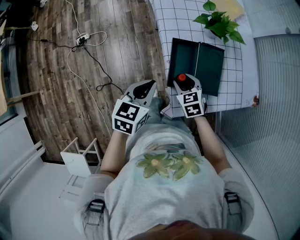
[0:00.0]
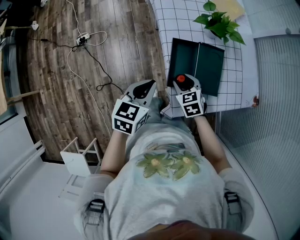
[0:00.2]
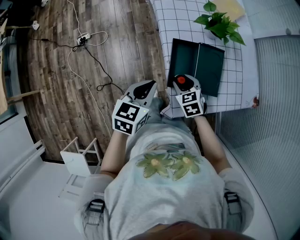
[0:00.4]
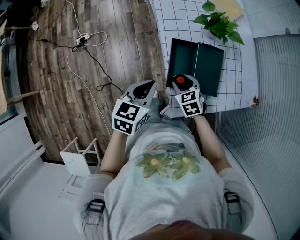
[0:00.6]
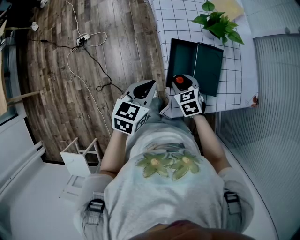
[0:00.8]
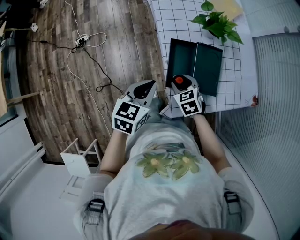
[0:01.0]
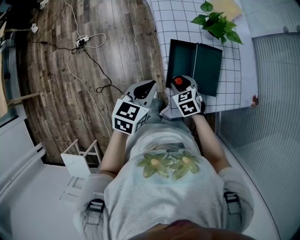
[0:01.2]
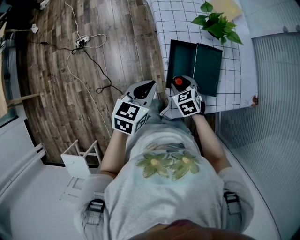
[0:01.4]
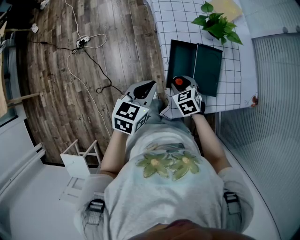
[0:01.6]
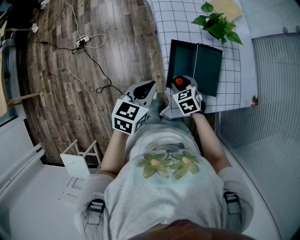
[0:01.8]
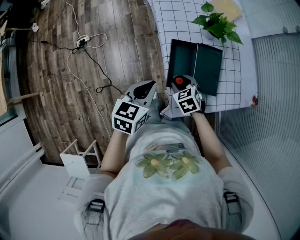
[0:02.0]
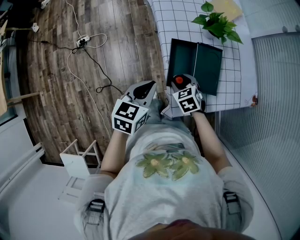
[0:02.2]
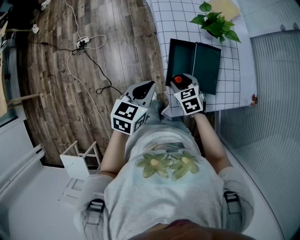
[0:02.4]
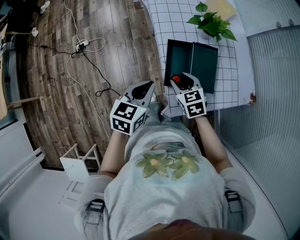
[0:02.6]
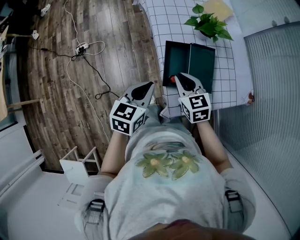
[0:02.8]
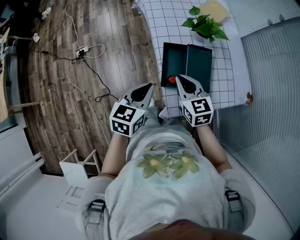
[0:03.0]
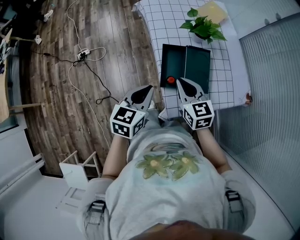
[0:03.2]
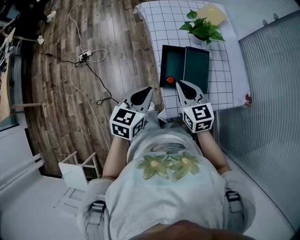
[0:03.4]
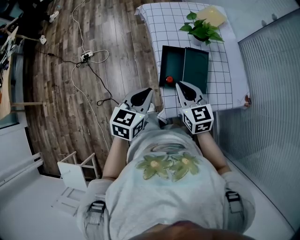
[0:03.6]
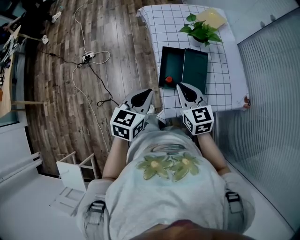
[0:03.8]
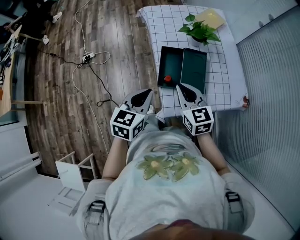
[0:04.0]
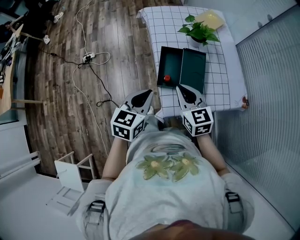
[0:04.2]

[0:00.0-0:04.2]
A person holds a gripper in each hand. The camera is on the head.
0:00.0 to 0:01.4: The grippers move only a little.
0:01.4 to 0:02.8: The right gripper heads upward, covering approximately 10 cm, changes its angle by some 20 degrees, and closes up.
0:02.8 to 0:04.2: The left gripper shifts about 5 cm backward. The right gripper travels backward and upward by about 10 cm.

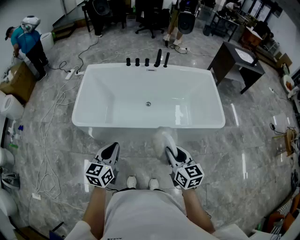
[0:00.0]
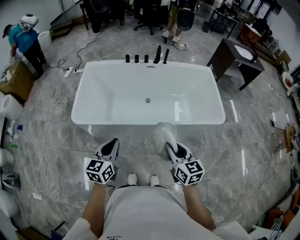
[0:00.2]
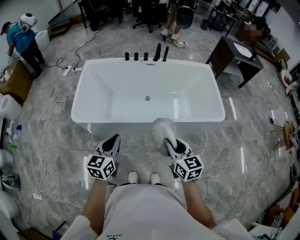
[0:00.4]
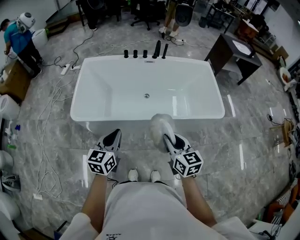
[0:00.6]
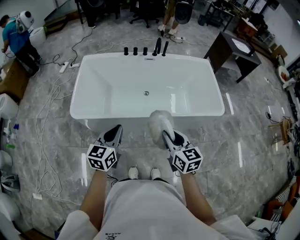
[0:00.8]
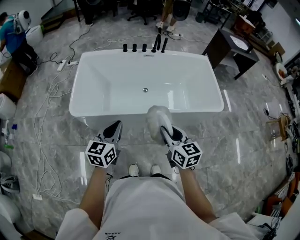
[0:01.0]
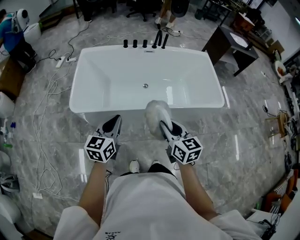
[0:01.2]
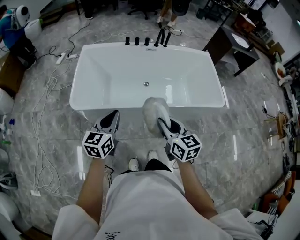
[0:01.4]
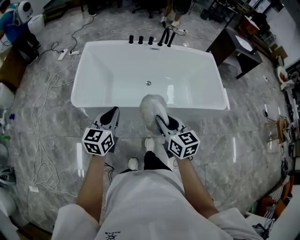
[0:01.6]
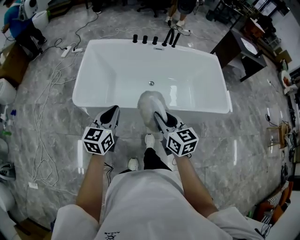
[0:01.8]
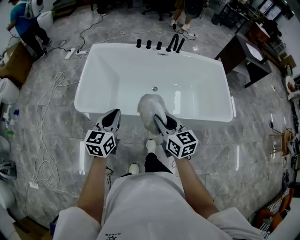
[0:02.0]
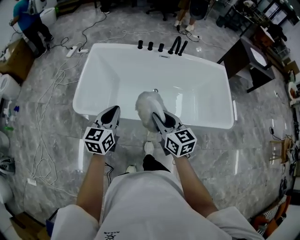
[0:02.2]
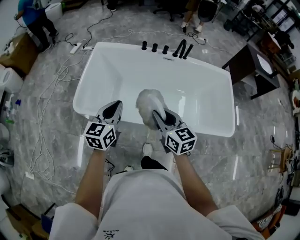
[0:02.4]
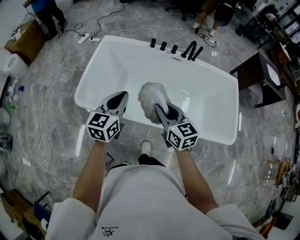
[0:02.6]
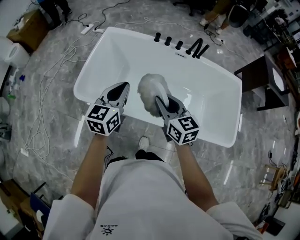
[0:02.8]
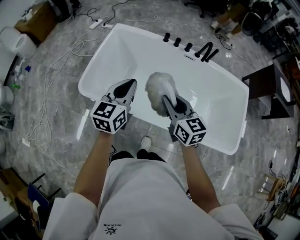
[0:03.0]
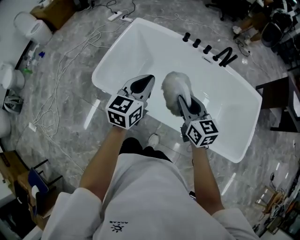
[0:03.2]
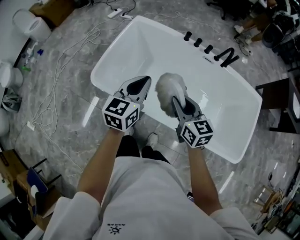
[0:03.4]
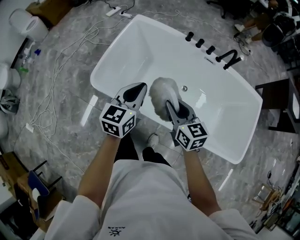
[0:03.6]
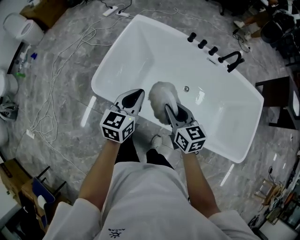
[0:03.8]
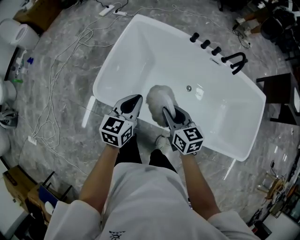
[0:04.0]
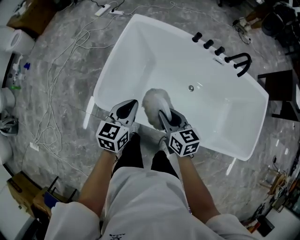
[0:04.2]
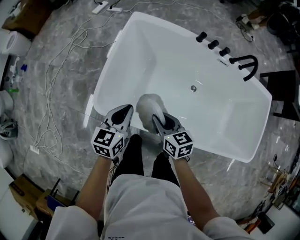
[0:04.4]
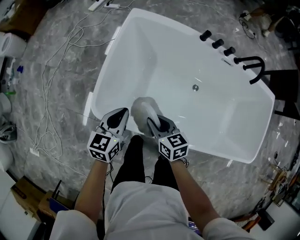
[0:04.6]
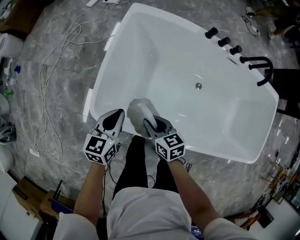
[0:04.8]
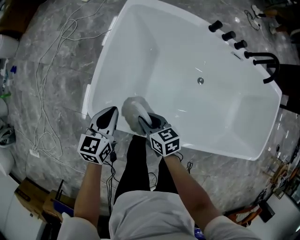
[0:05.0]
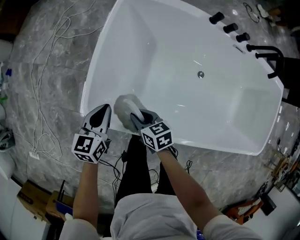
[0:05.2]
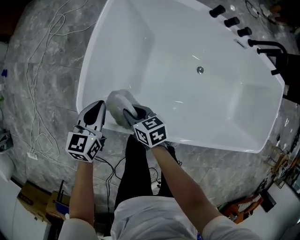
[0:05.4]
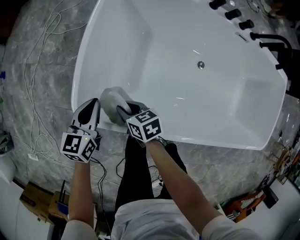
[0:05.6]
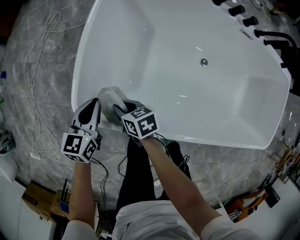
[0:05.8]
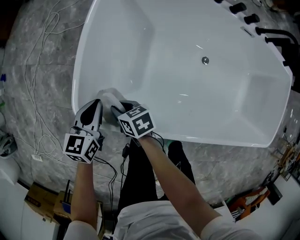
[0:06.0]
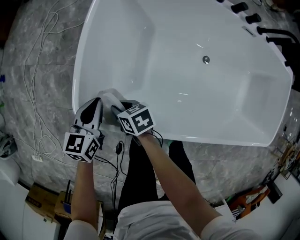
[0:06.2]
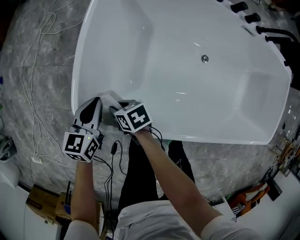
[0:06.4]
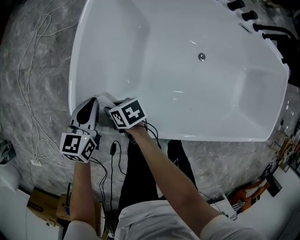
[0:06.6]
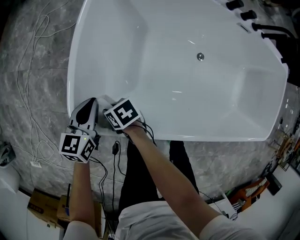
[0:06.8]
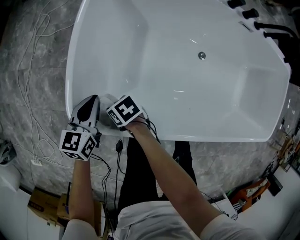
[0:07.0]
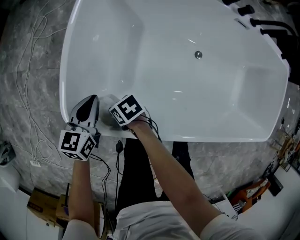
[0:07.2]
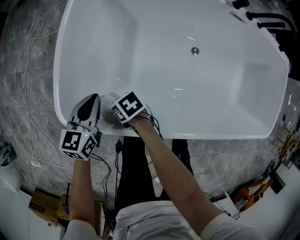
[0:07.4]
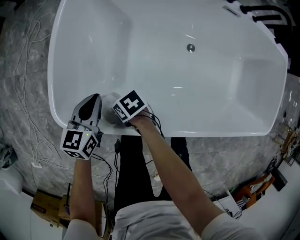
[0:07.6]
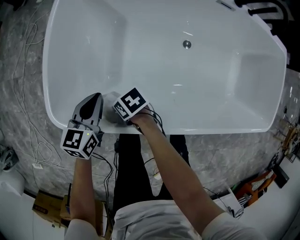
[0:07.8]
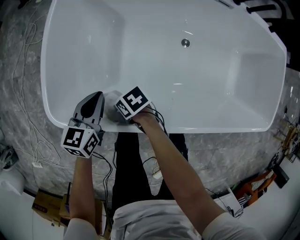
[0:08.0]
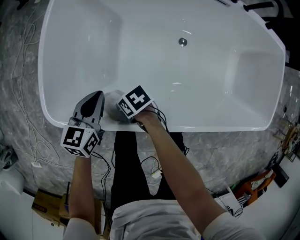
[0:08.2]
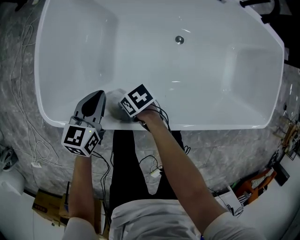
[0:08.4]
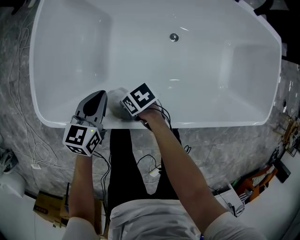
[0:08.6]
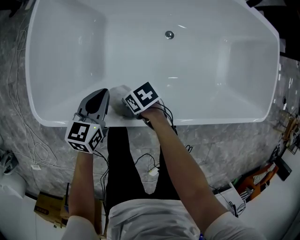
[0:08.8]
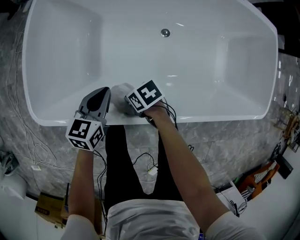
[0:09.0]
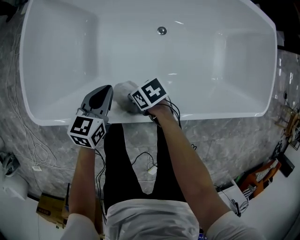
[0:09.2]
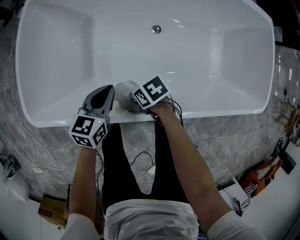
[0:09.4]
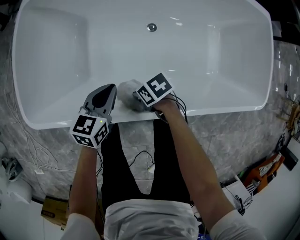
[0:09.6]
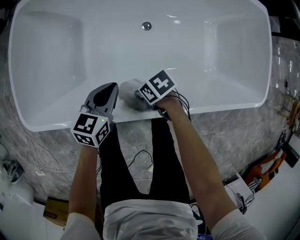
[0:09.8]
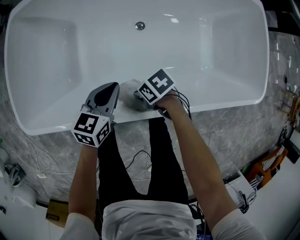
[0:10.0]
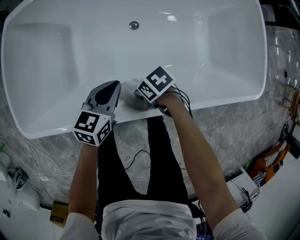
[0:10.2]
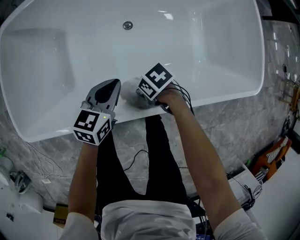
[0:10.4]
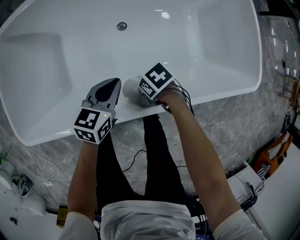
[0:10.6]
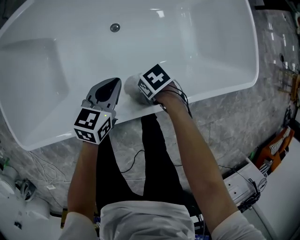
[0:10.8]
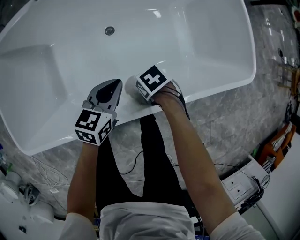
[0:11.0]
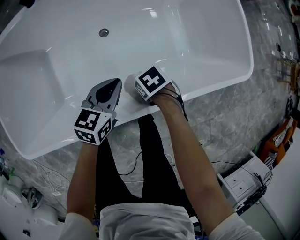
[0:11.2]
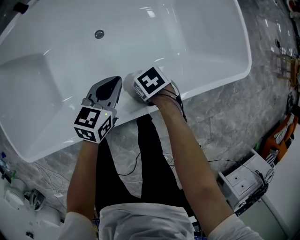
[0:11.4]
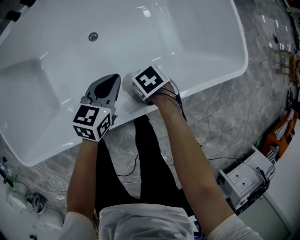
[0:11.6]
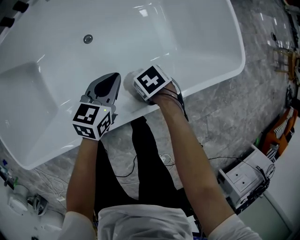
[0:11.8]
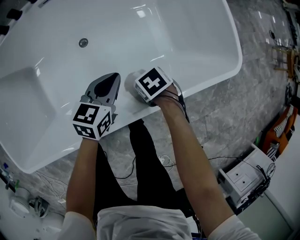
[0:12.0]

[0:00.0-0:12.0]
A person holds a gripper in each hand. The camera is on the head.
0:00.0 to 0:01.6: The left gripper shifts by about 10 cm.
0:01.6 to 0:03.0: The left gripper ends up some 25 cm from where it was.
0:03.0 to 0:04.4: The left gripper changes place by roughly 25 cm.
0:04.4 to 0:06.0: The left gripper moves downward, approximately 20 cm.
0:06.0 to 0:07.6: The left gripper ends up about 10 cm from where it was.
0:07.6 to 0:09.0: The left gripper ends up approximately 20 cm from where it was.
0:09.0 to 0:10.4: The left gripper shifts by approximately 20 cm.
0:10.4 to 0:12.0: The left gripper changes place by roughly 20 cm.

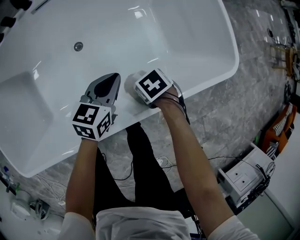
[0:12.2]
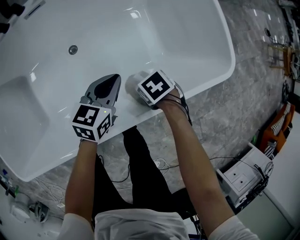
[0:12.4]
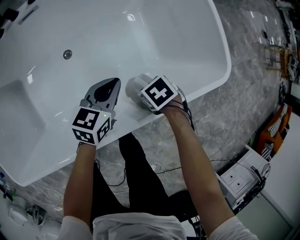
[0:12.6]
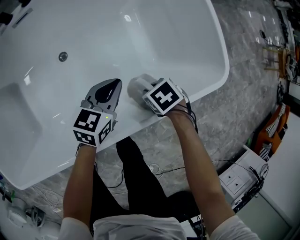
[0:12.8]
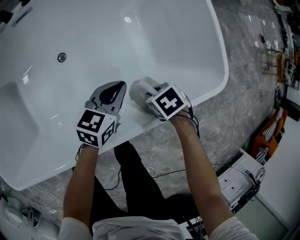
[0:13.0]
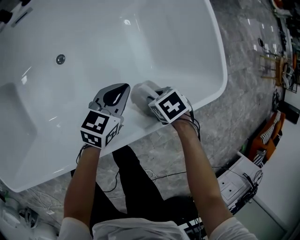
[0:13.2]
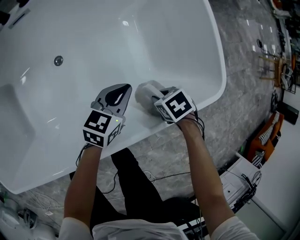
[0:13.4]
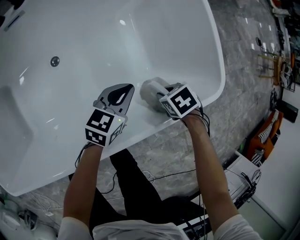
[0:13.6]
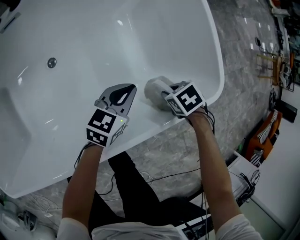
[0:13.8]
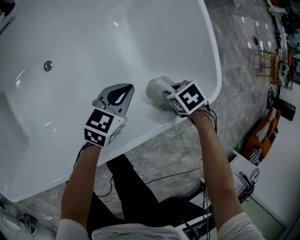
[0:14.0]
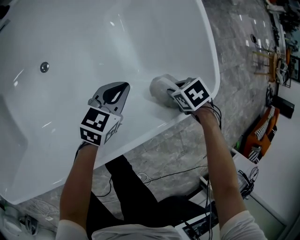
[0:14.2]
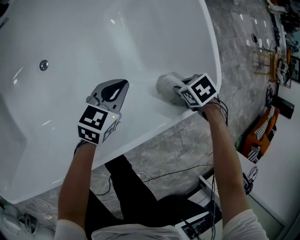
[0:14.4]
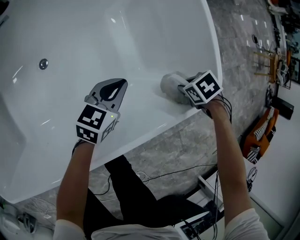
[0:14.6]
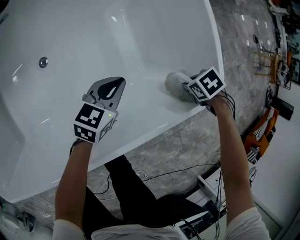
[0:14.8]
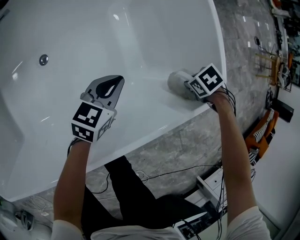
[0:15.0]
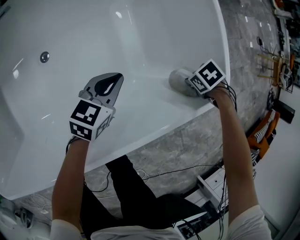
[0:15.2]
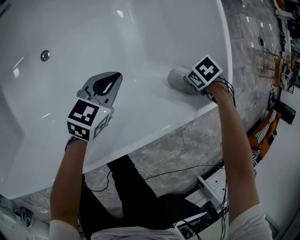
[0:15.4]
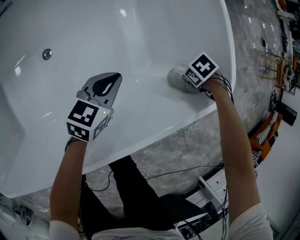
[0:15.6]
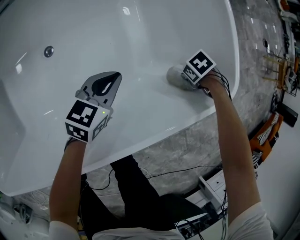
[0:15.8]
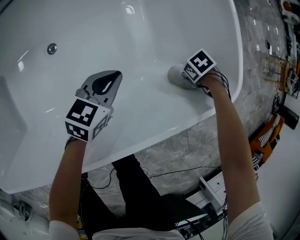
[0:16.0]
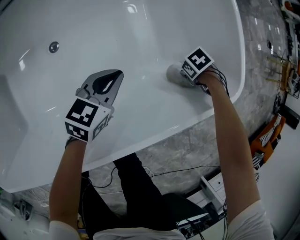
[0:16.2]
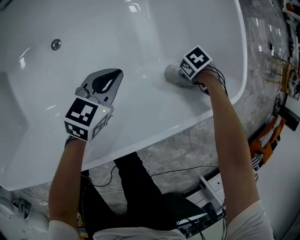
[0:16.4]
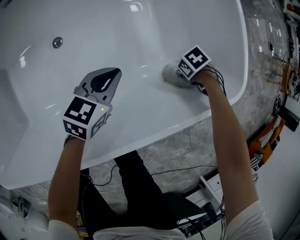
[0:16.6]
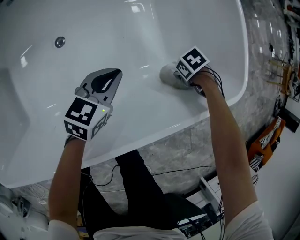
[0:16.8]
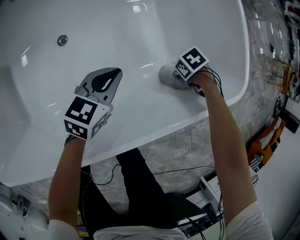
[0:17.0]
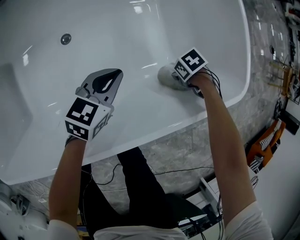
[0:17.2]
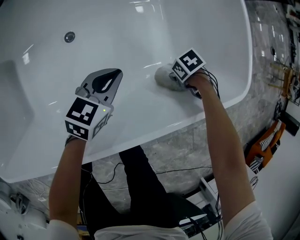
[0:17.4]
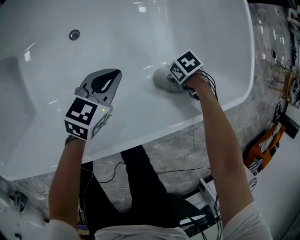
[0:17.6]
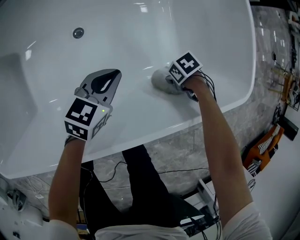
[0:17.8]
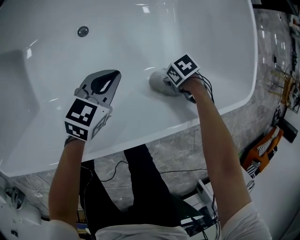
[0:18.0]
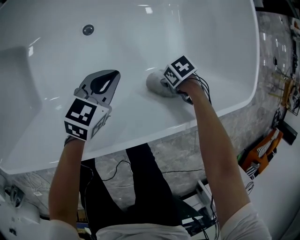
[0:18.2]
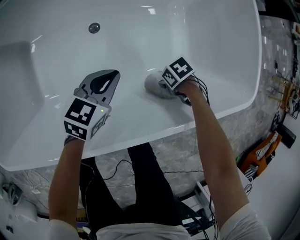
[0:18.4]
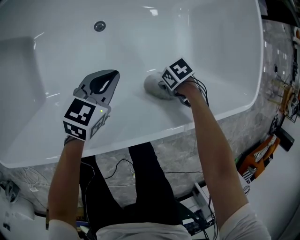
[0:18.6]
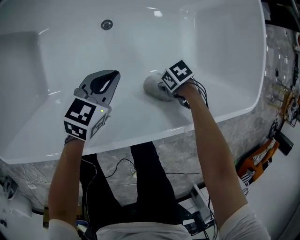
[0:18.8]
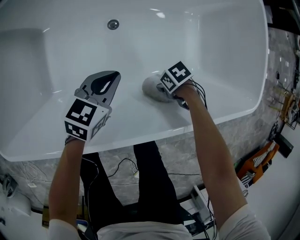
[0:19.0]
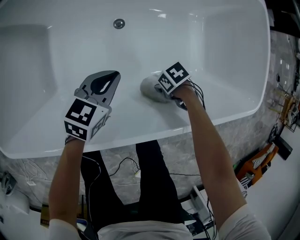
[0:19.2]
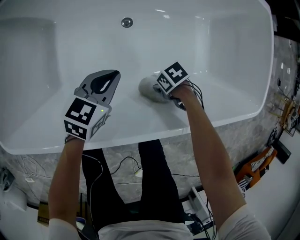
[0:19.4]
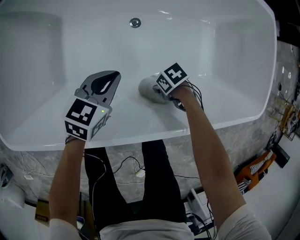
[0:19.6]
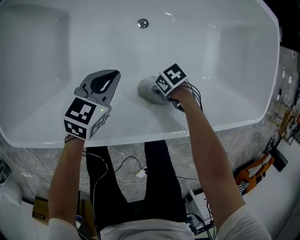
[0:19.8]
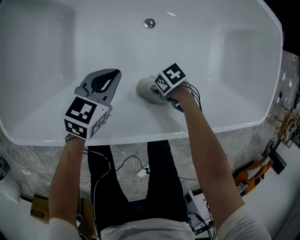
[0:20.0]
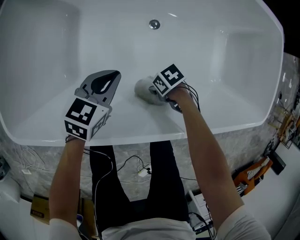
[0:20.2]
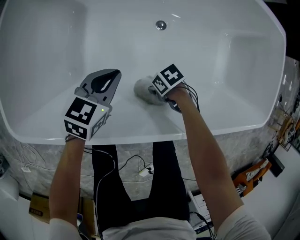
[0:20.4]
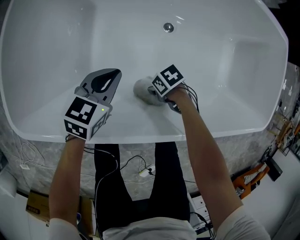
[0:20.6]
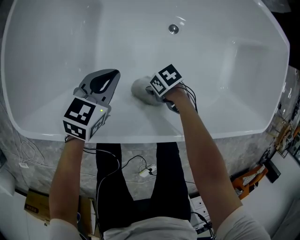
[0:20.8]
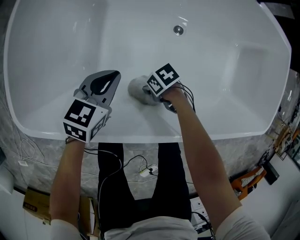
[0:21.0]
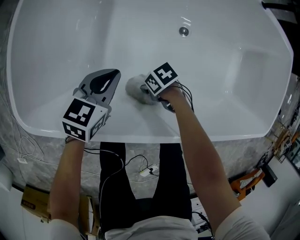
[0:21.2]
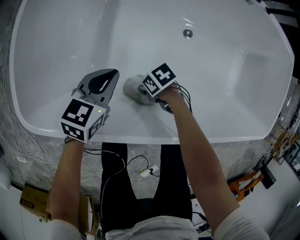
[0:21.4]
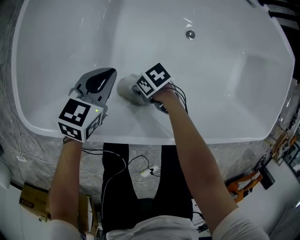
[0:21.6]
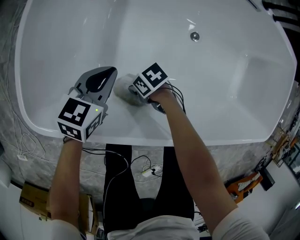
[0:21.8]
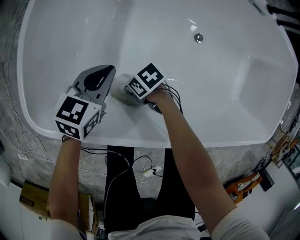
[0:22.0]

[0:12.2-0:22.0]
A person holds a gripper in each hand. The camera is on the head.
0:12.2 to 0:13.6: The left gripper moves approximately 15 cm.
0:15.0 to 0:16.4: The left gripper shifts by some 5 cm.
0:16.4 to 0:17.8: The left gripper moves some 10 cm.
0:17.8 to 0:19.2: The left gripper shifts by roughly 20 cm.
0:19.2 to 0:20.6: The left gripper ends up some 20 cm from where it was.
0:20.6 to 0:22.0: The left gripper moves some 20 cm.
